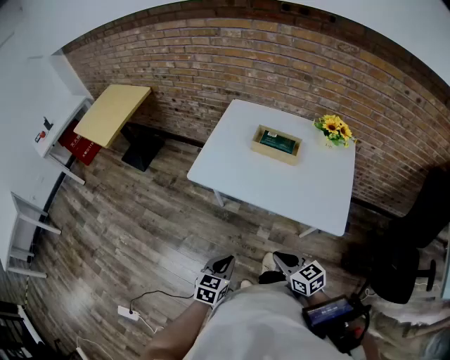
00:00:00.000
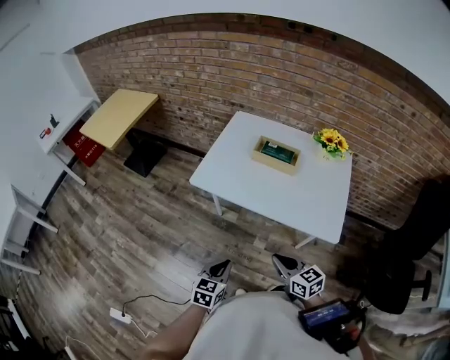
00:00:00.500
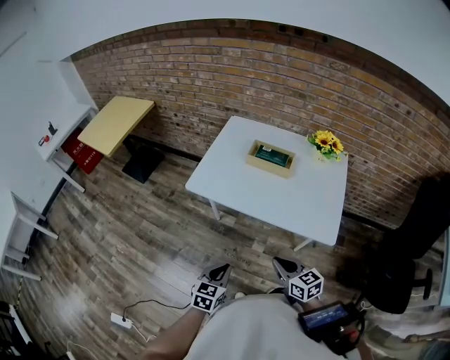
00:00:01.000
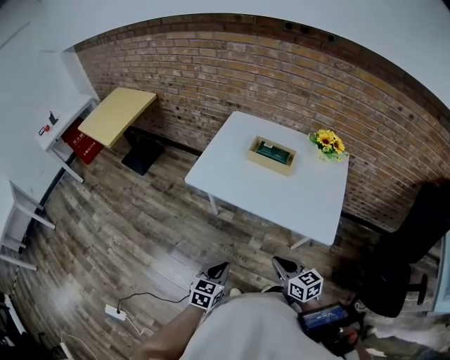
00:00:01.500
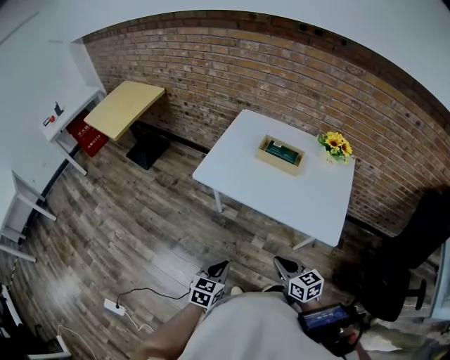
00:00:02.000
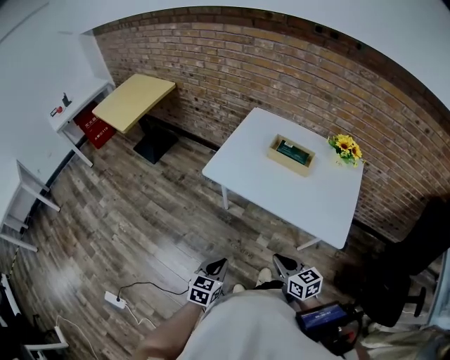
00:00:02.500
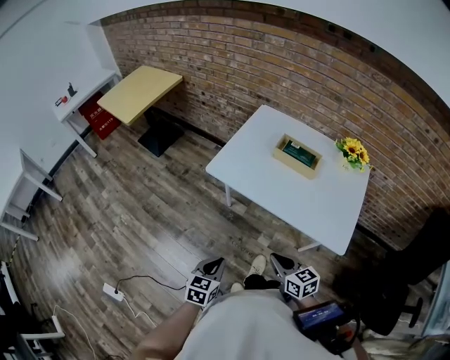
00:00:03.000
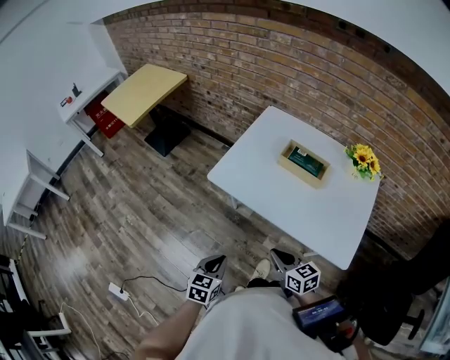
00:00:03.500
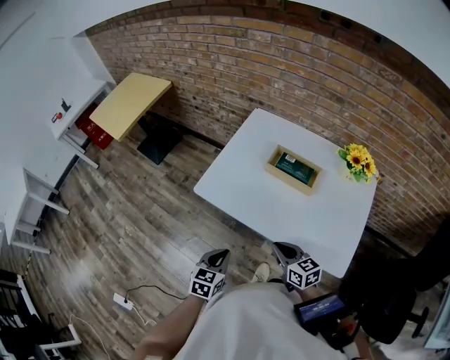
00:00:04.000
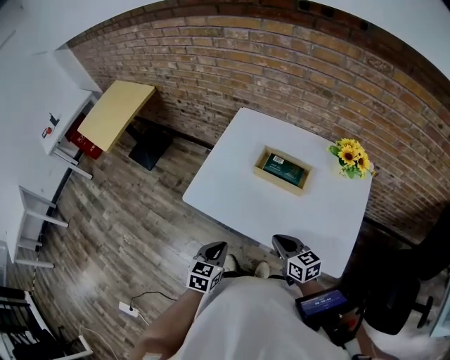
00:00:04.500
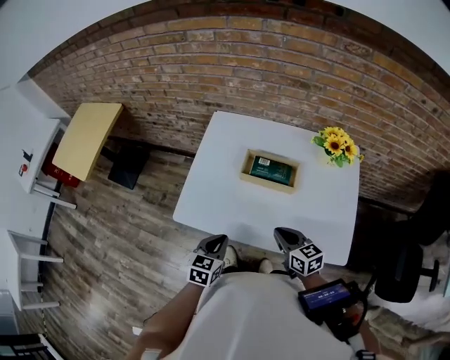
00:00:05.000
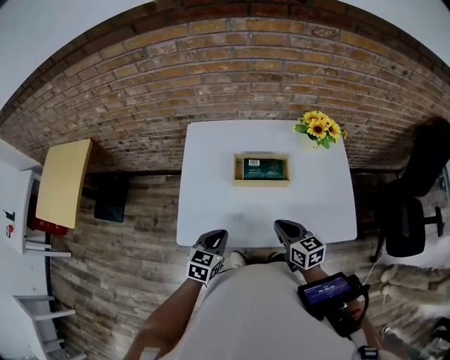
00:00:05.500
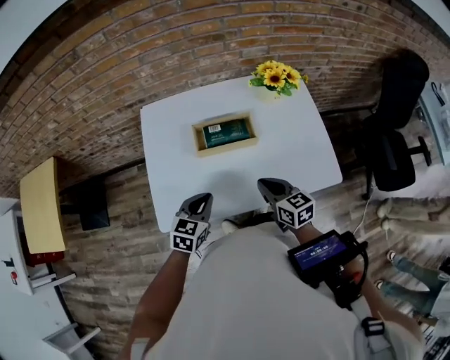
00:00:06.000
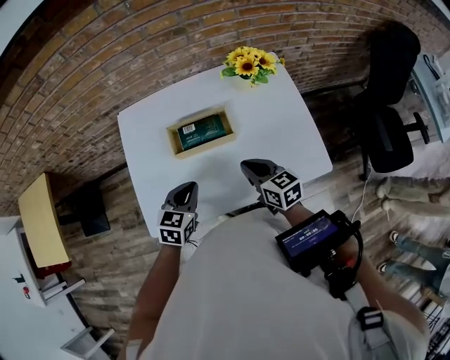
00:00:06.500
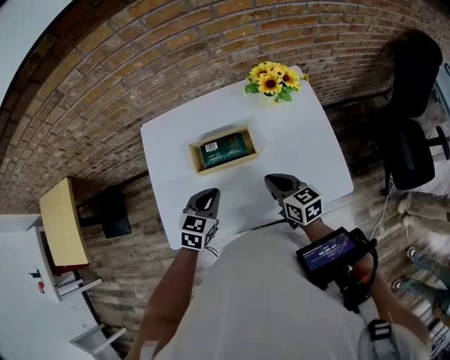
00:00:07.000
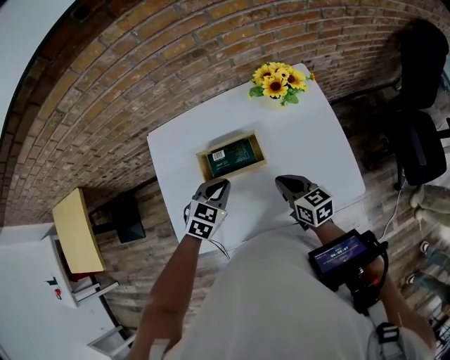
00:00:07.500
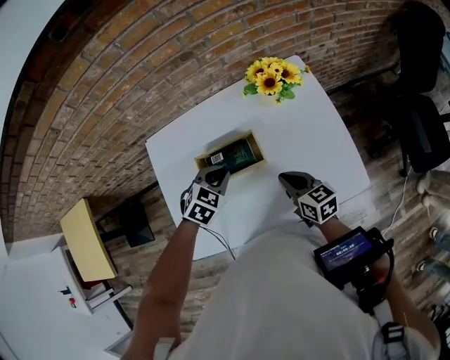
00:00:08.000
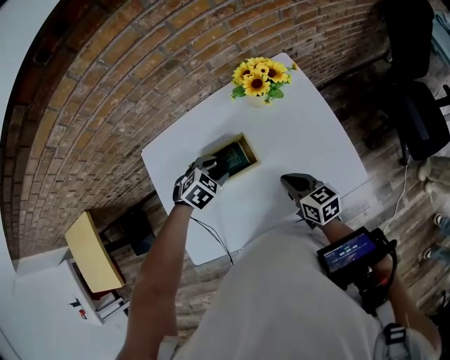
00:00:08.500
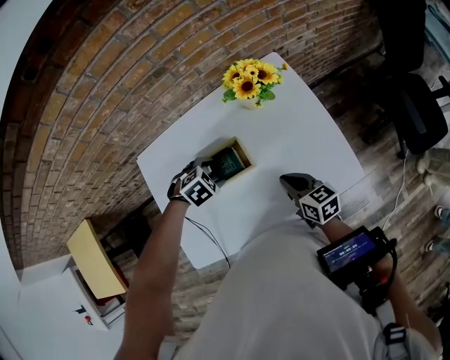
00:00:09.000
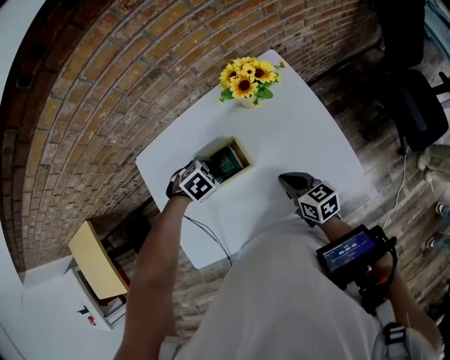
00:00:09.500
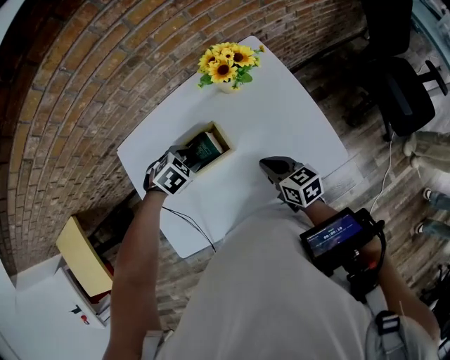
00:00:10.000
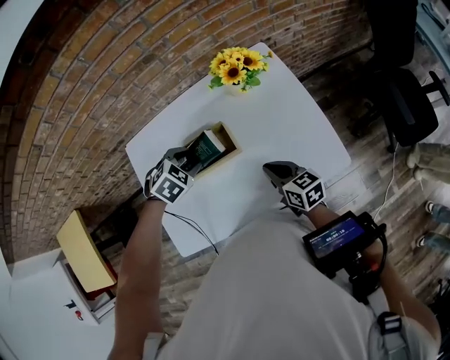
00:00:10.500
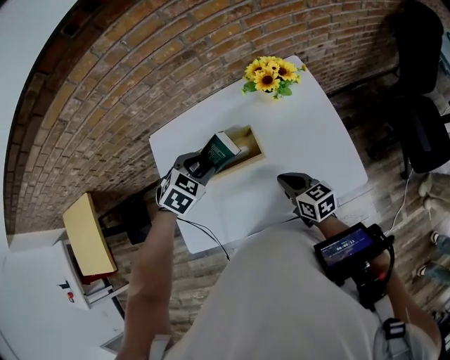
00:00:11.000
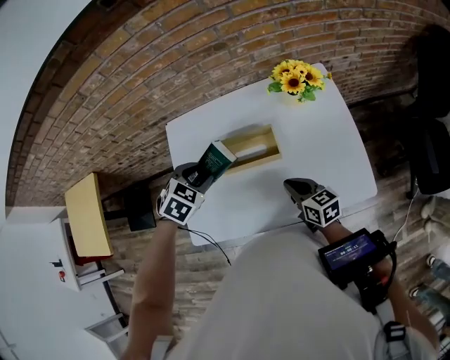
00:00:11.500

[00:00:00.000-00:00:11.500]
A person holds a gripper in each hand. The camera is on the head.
00:00:00.000 to 00:00:02.000: There are only small adjustments of the grippers.
00:00:02.000 to 00:00:04.000: Both grippers move forward, approximately 15 cm.
00:00:04.000 to 00:00:06.000: The left gripper shifts by approximately 25 cm, and rotates some 40 degrees; the right gripper moves roughly 10 cm, and turns by some 40 degrees.
00:00:06.000 to 00:00:07.500: The right gripper moves forward and to the right, approximately 10 cm, while the left gripper is displaced forward and to the right by some 15 cm, and changes its angle by approximately 20 degrees.
00:00:07.500 to 00:00:09.500: The left gripper changes place by approximately 10 cm, tips its fingers downward by approximately 30 degrees, and opens.
00:00:09.500 to 00:00:11.500: The left gripper travels upward by about 10 cm, and rotates some 30 degrees; the right gripper shifts by approximately 5 cm.

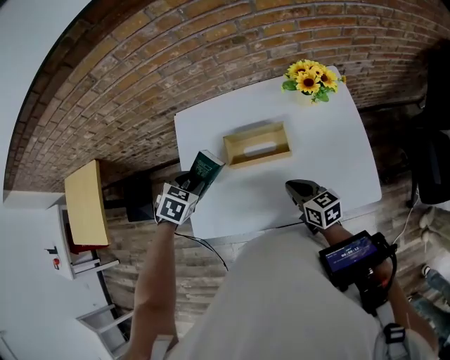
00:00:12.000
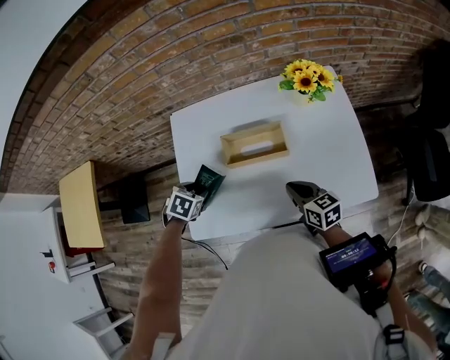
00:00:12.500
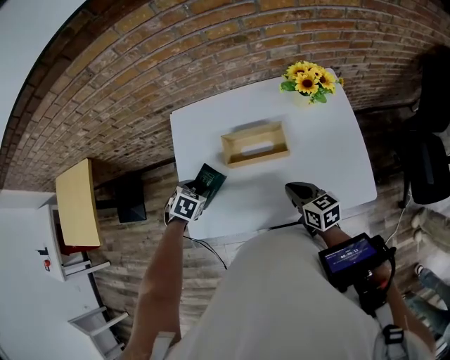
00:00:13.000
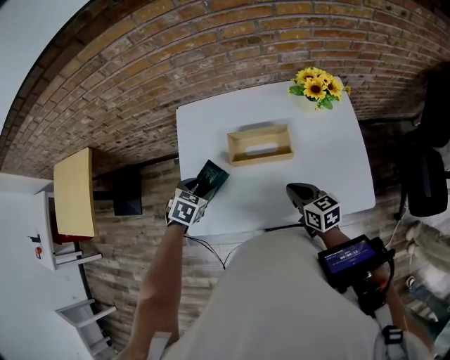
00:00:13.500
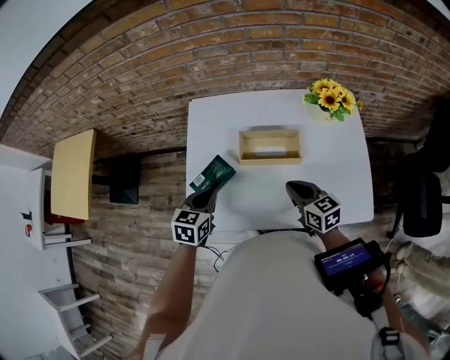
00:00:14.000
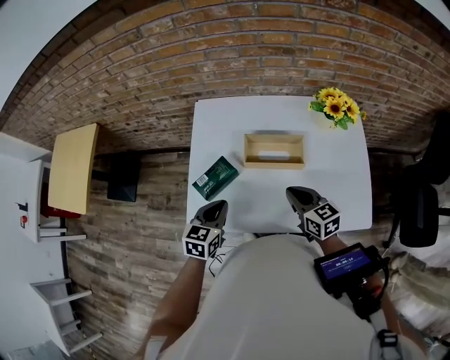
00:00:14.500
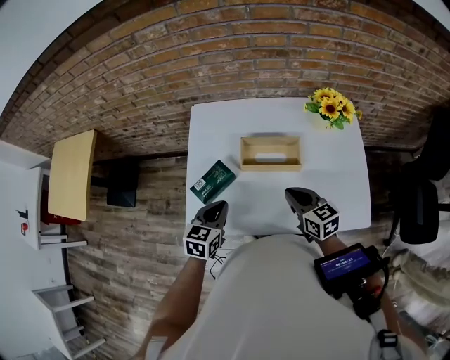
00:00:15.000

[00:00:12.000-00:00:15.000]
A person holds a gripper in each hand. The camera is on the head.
00:00:12.000 to 00:00:13.500: The left gripper shifts approximately 5 cm downward.
00:00:13.500 to 00:00:15.000: The left gripper heads backward, covering some 5 cm, turns by roughly 30 degrees, and closes.

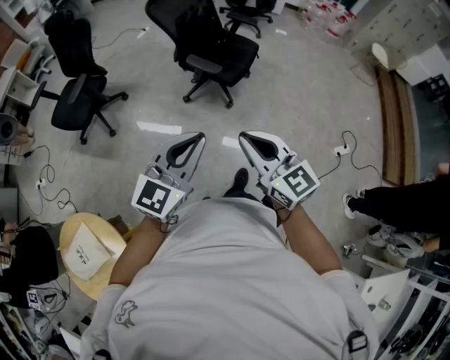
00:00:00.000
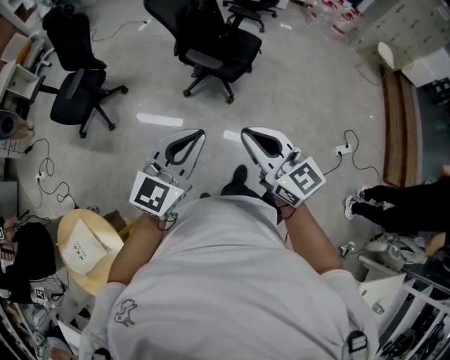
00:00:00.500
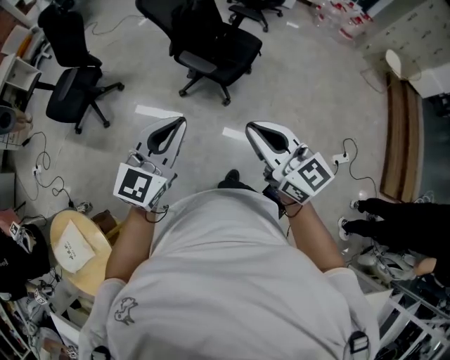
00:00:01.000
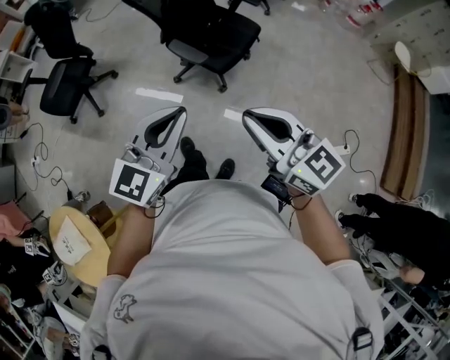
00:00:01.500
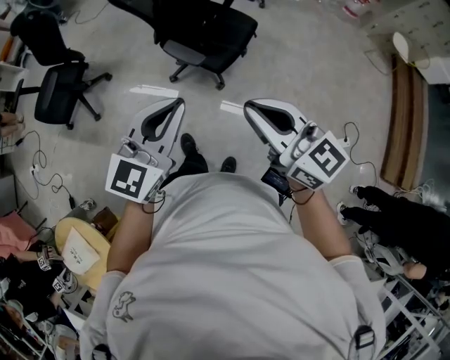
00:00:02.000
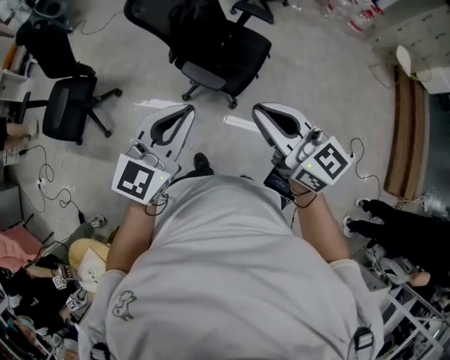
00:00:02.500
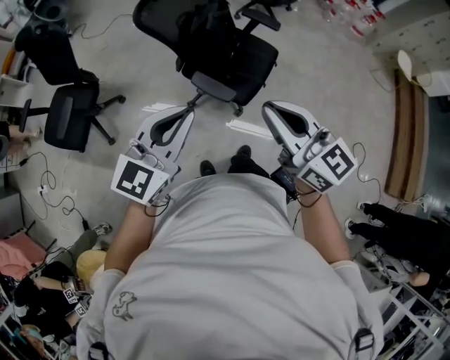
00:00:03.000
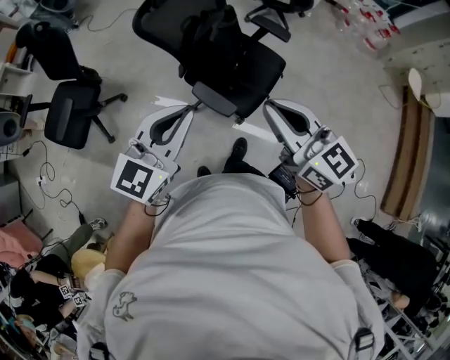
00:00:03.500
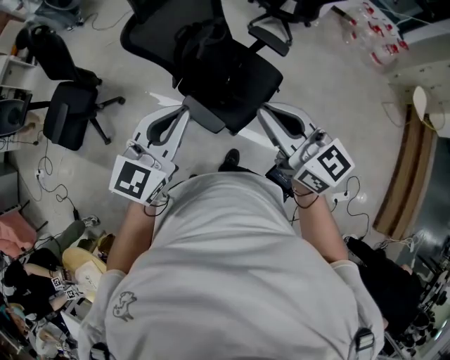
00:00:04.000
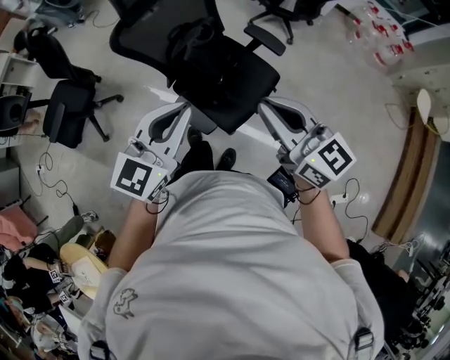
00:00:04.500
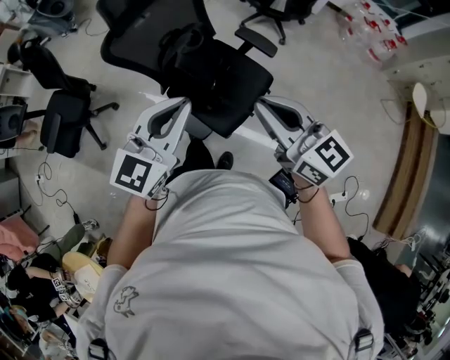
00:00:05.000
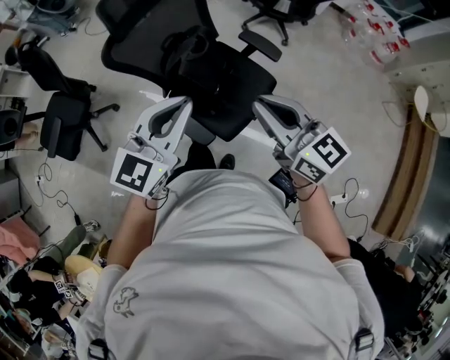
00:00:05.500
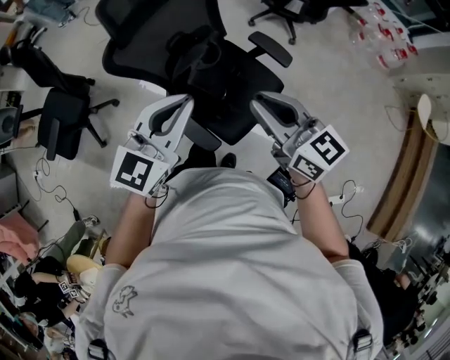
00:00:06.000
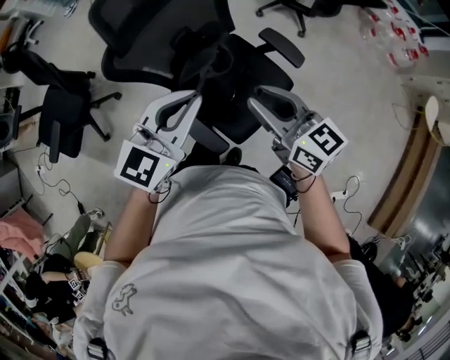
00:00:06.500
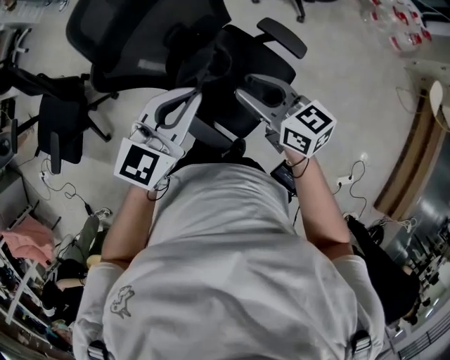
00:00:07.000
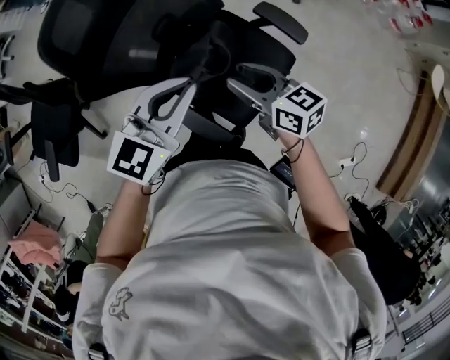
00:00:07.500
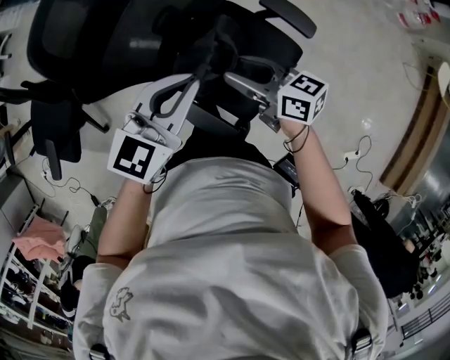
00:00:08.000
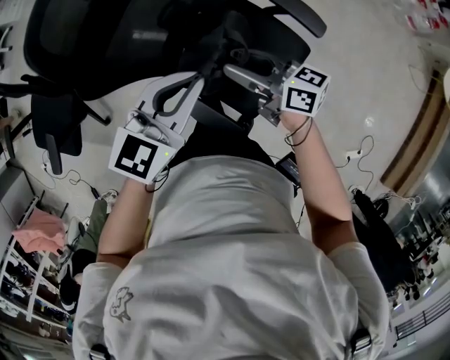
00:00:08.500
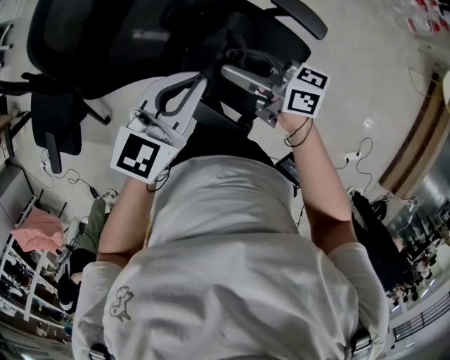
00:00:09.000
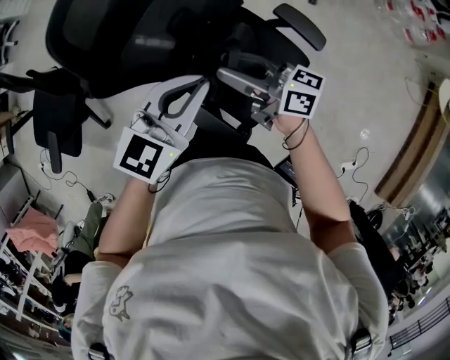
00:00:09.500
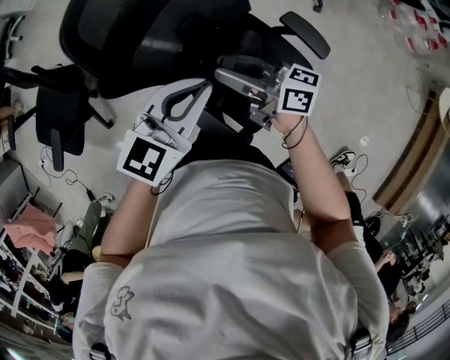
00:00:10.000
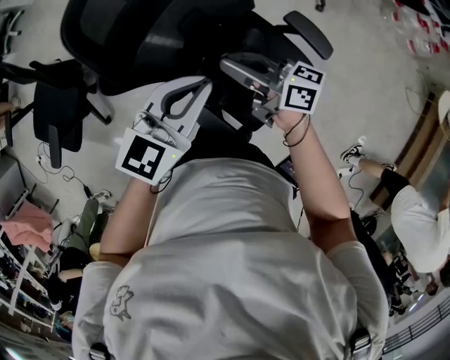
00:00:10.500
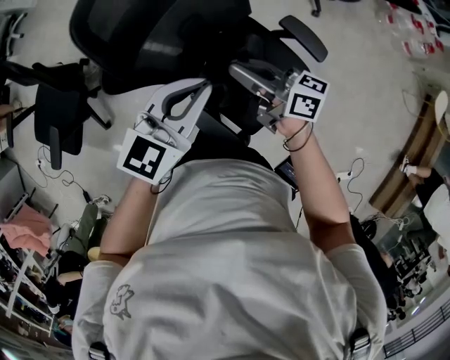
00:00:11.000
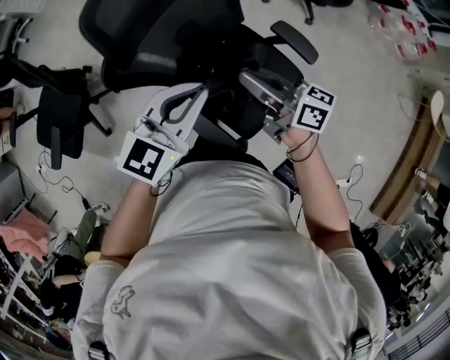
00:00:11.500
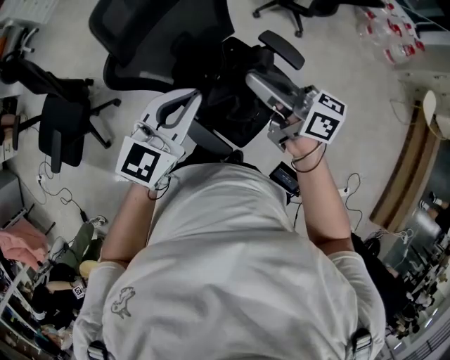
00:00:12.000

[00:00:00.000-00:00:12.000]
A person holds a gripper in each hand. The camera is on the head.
00:00:00.000 to 00:00:02.000: Both grippers travel together forward and to the right, approximately 25 cm.
00:00:02.000 to 00:00:04.000: The two grippers go approximately 35 cm forward.
00:00:04.000 to 00:00:06.000: The grippers both shift forward by some 15 cm.
00:00:06.000 to 00:00:08.000: The right gripper shifts approximately 25 cm downward and forward, changes its angle by approximately 30 degrees, and opens up. The left gripper moves forward and downward, about 20 cm.
00:00:08.000 to 00:00:10.000: The right gripper heads to the left and upward, covering some 10 cm, and swivels approximately 20 degrees.
00:00:10.000 to 00:00:12.000: The left gripper heads backward and upward, covering about 10 cm. The right gripper shifts roughly 15 cm upward, backward and to the right, and closes.
